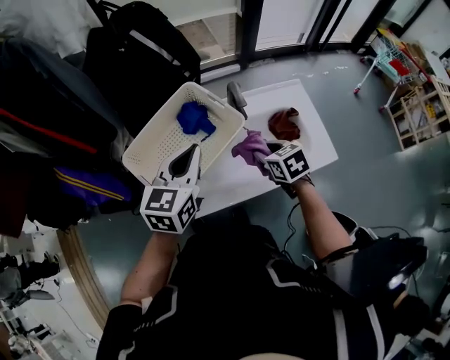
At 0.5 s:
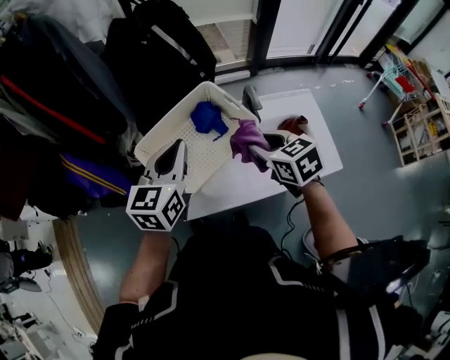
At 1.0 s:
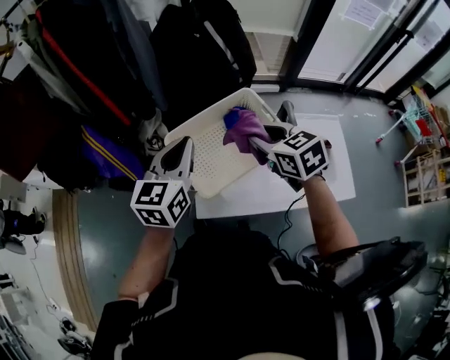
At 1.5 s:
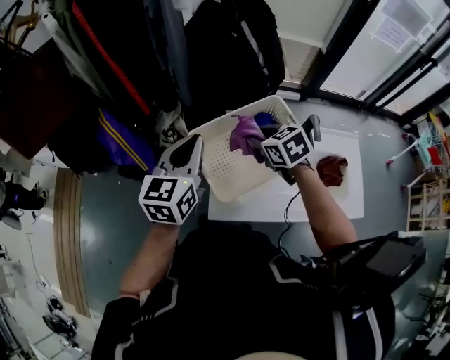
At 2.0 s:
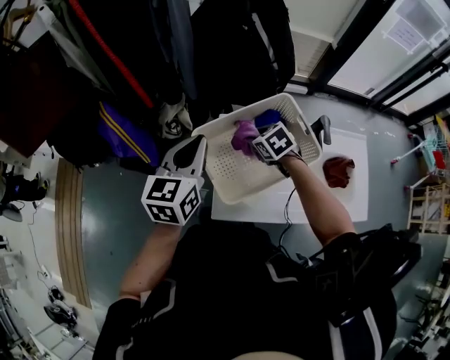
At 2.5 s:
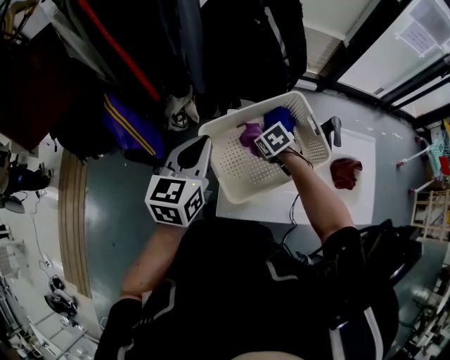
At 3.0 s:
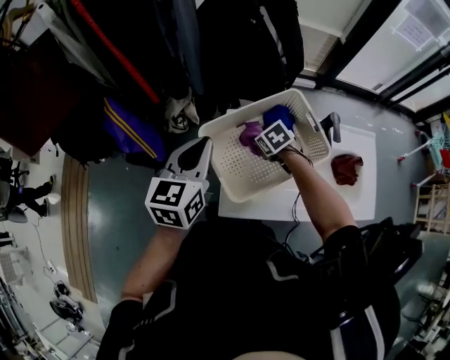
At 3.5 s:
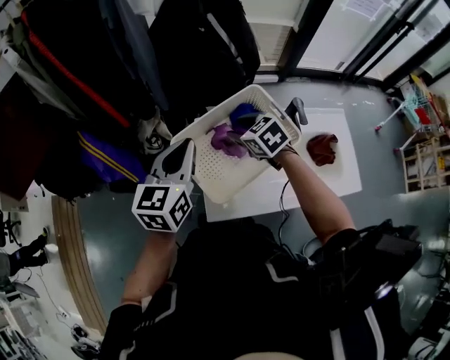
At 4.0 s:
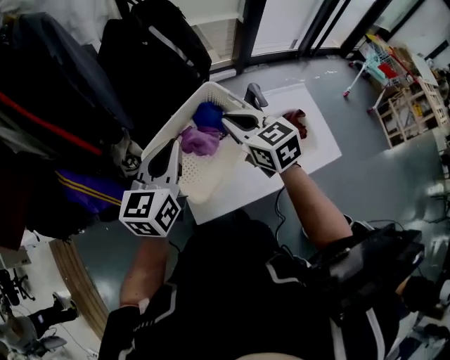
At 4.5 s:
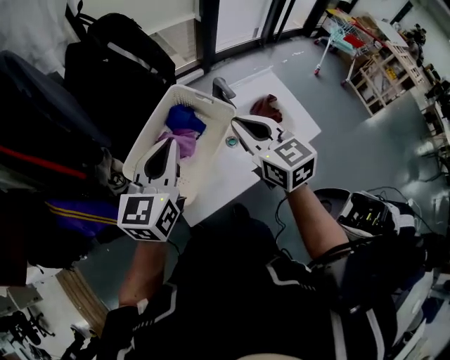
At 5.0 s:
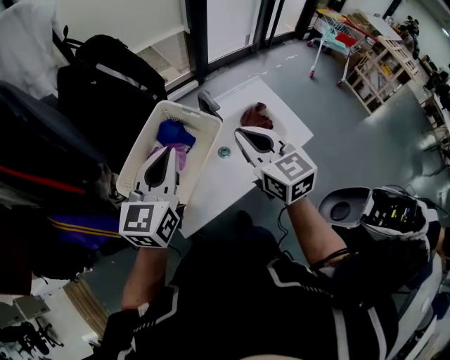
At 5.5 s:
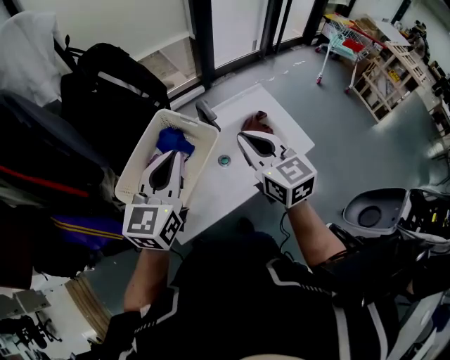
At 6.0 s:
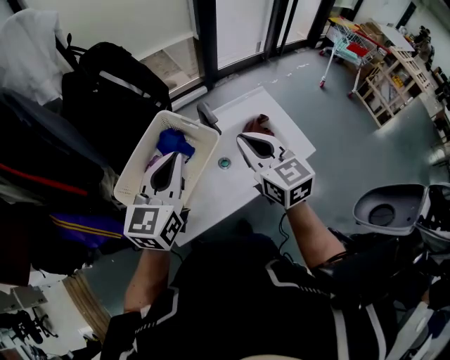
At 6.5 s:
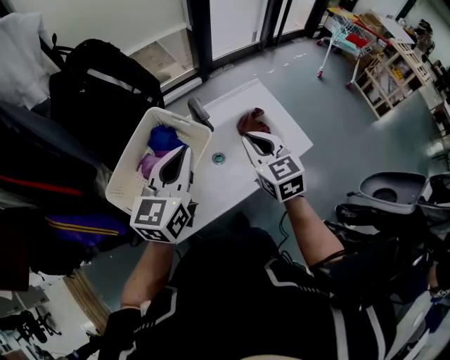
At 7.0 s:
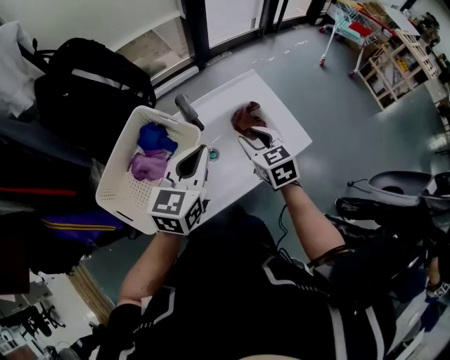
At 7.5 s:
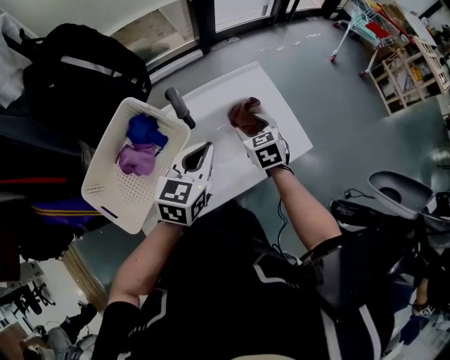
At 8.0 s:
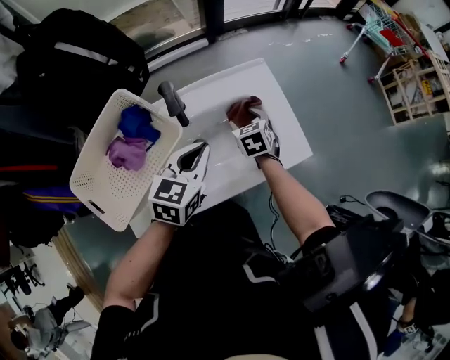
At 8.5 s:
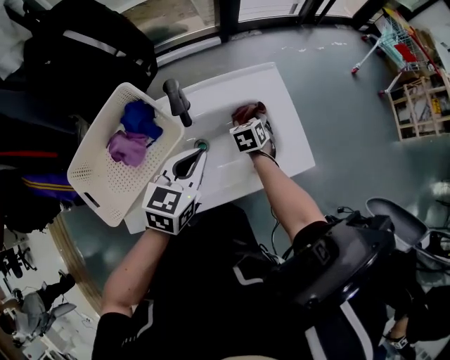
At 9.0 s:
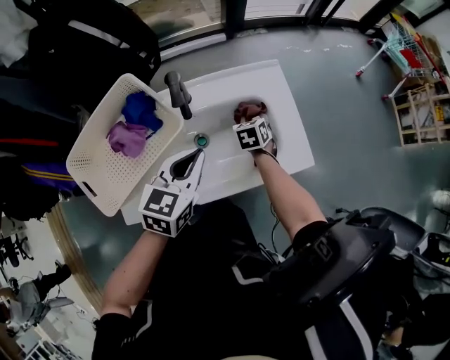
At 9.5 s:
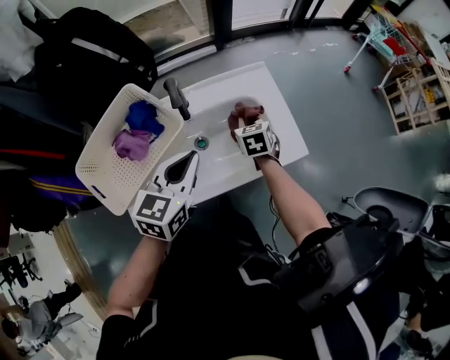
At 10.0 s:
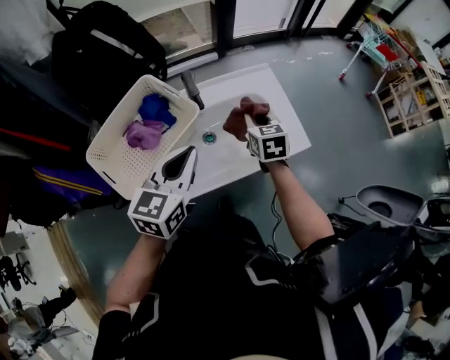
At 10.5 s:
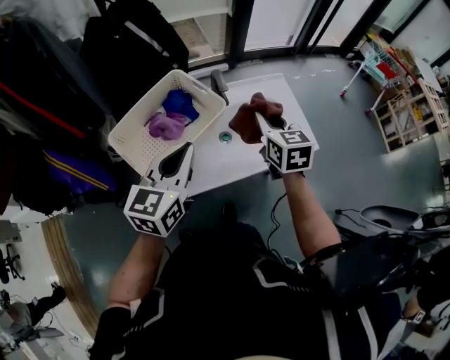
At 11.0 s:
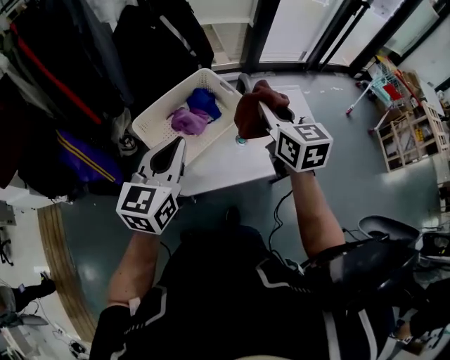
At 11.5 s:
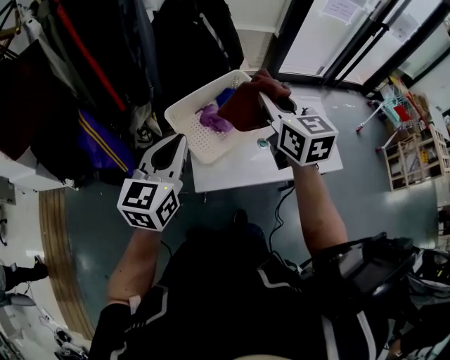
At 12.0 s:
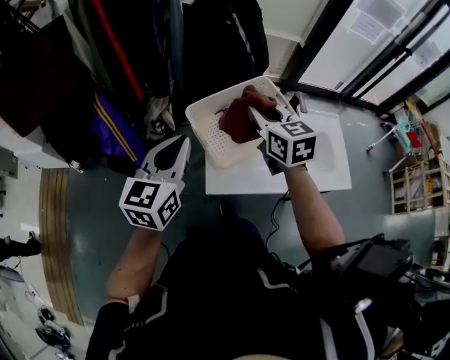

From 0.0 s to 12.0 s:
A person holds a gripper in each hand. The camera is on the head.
From 0.0 s to 2.0 s: The left gripper moves to the left, approximately 20 cm, and turns by some 20 degrees. Meanwhile the right gripper heads to the left and forward, covering roughly 30 cm, and swivels approximately 30 degrees.
From 2.0 s to 4.0 s: The left gripper heads to the right, covering approximately 5 cm, and changes its angle by roughly 20 degrees. Meanwhile the right gripper heads upward, covering roughly 20 cm, and tilts its fingers about 30 degrees upward.
From 4.0 s to 6.0 s: Both grippers travel together to the right, some 15 cm. The right gripper rotates roughly 20 degrees.
From 6.0 s to 8.0 s: The left gripper goes approximately 25 cm downward, to the right and forward, and turns by roughly 20 degrees, while the right gripper travels downward and forward by about 35 cm, angles its fingers downward, by approximately 40 degrees, and opens its fingers.
From 8.0 s to 10.0 s: The right gripper shifts approximately 15 cm upward and backward, and closes up. Meanwhile the left gripper shifts approximately 15 cm backward, upward and to the left.
From 10.0 s to 12.0 s: The left gripper shifts by approximately 35 cm, and changes its angle by roughly 30 degrees, while the right gripper ends up about 40 cm from where it was, and swivels about 30 degrees.

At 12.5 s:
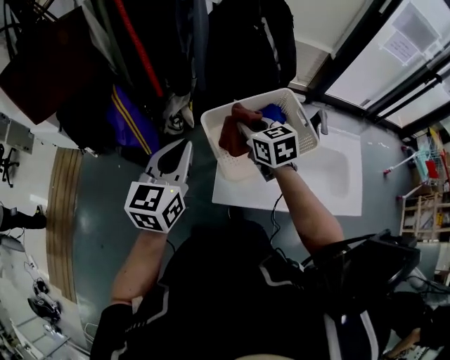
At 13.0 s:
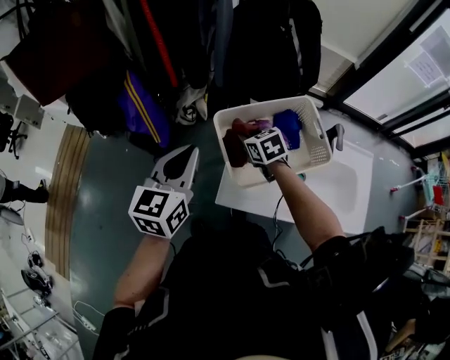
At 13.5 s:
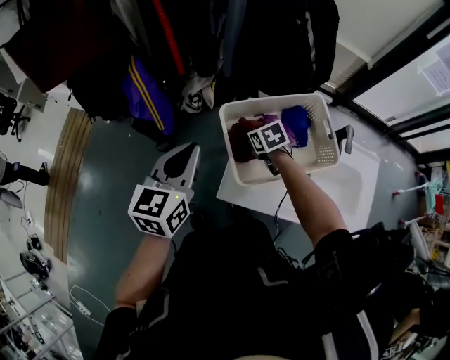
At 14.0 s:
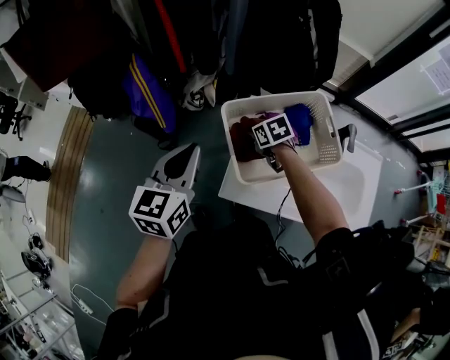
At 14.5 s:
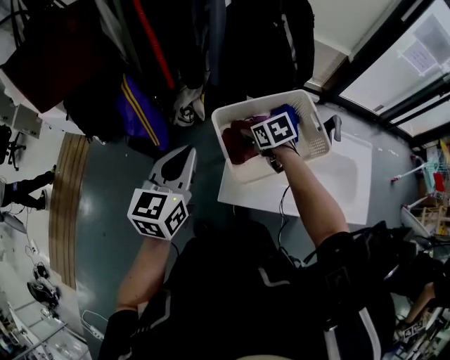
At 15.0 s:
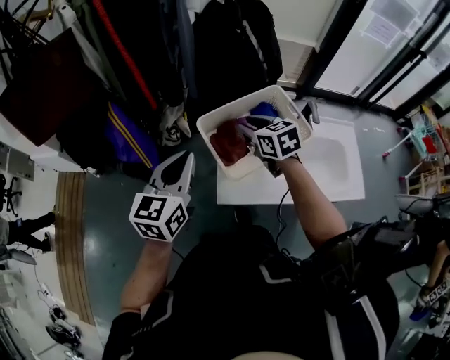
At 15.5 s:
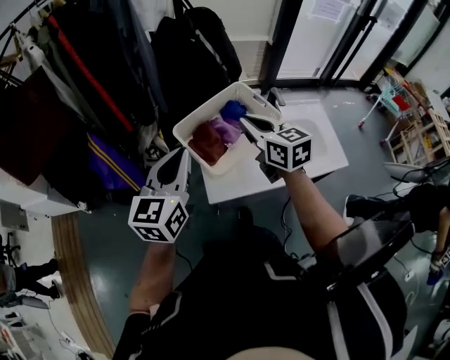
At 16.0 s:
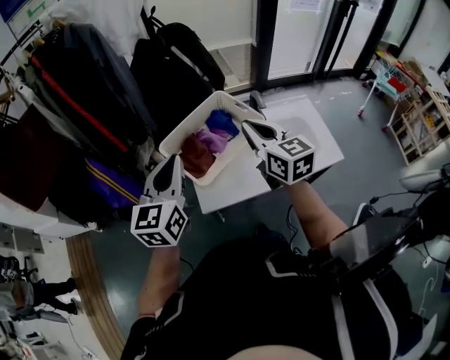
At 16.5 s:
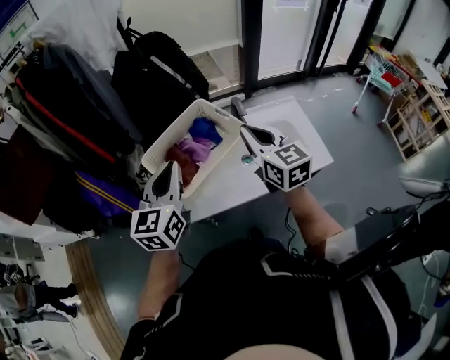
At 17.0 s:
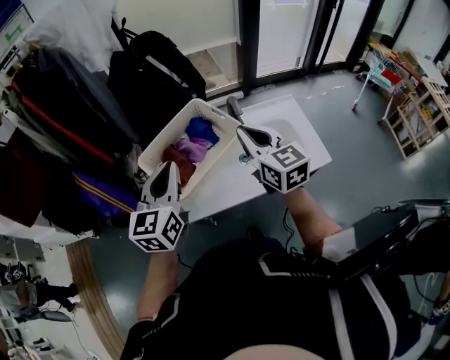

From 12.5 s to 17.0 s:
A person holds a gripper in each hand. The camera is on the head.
From 12.5 s to 14.5 s: The right gripper goes roughly 10 cm downward, turns by about 20 degrees, and opens.
From 14.5 s to 17.0 s: The left gripper changes place by approximately 20 cm. Meanwhile the right gripper moves about 35 cm, angles its fingers upward, by approximately 40 degrees, and closes.

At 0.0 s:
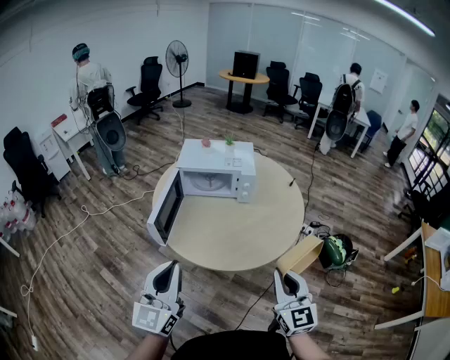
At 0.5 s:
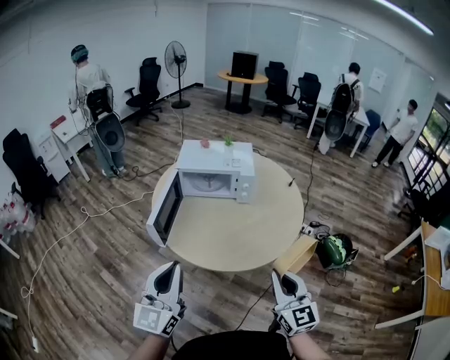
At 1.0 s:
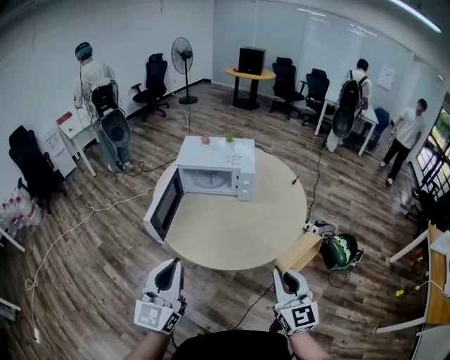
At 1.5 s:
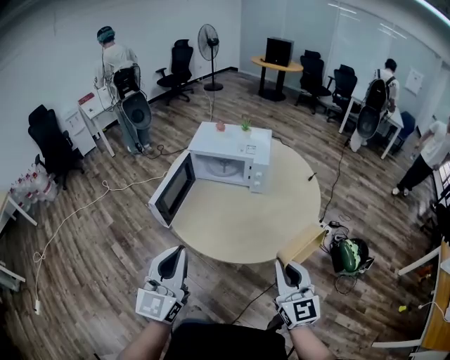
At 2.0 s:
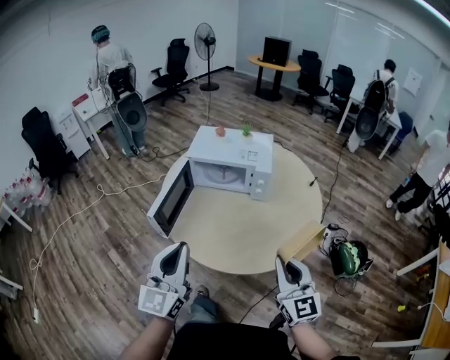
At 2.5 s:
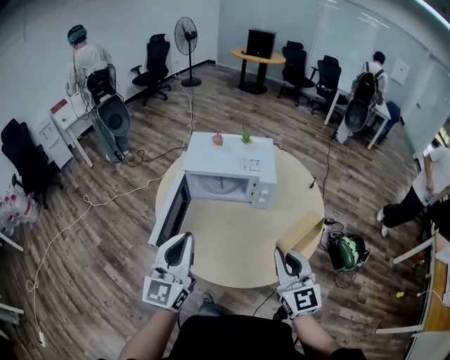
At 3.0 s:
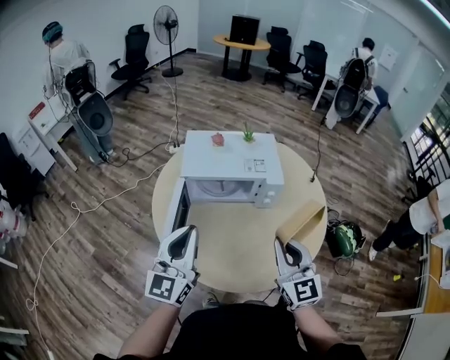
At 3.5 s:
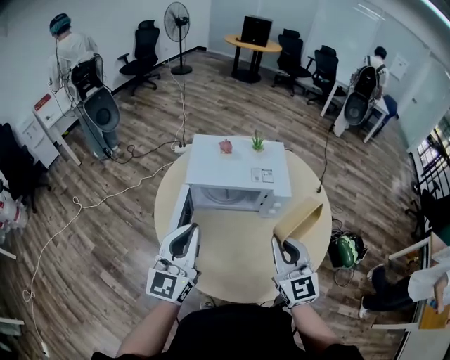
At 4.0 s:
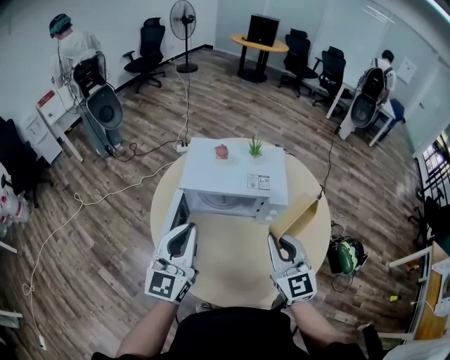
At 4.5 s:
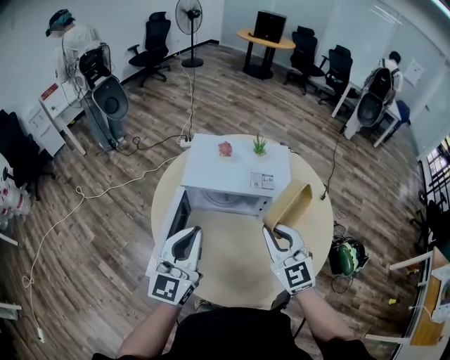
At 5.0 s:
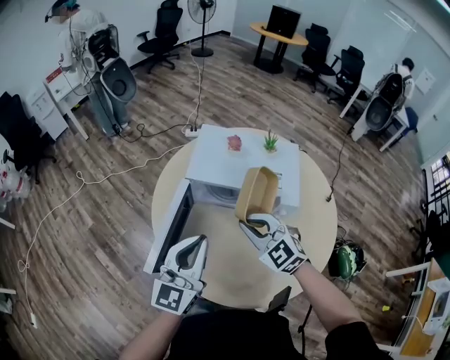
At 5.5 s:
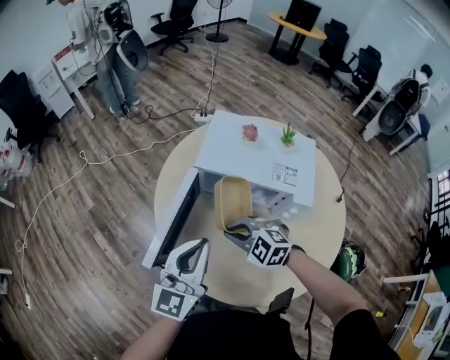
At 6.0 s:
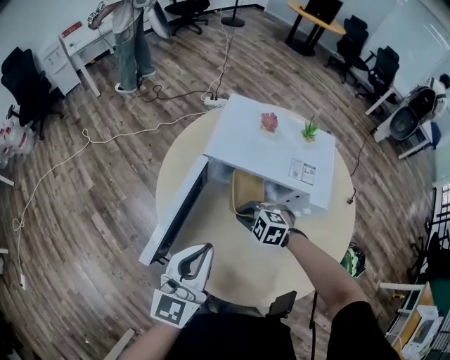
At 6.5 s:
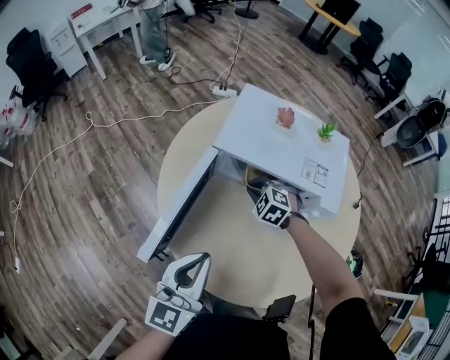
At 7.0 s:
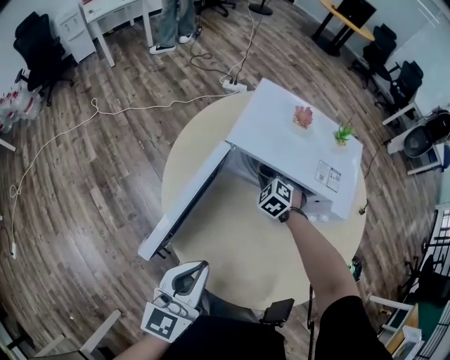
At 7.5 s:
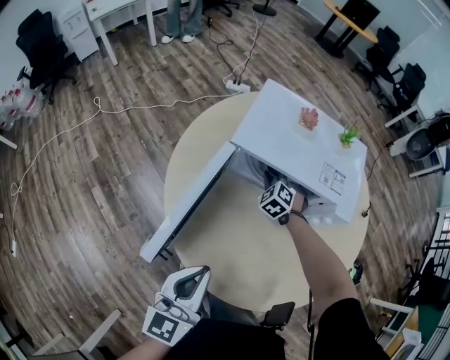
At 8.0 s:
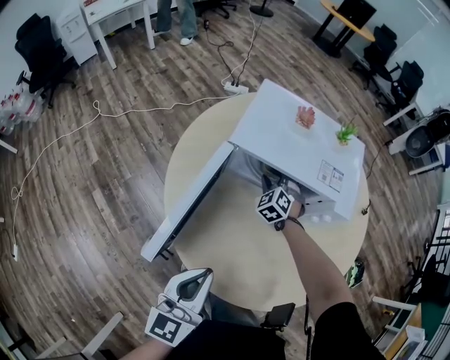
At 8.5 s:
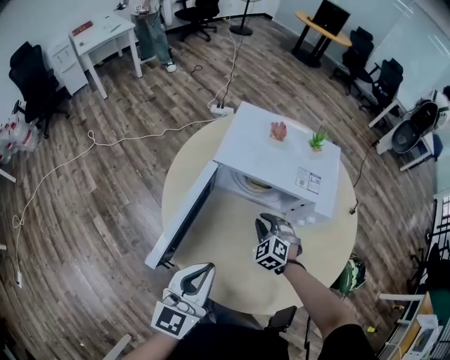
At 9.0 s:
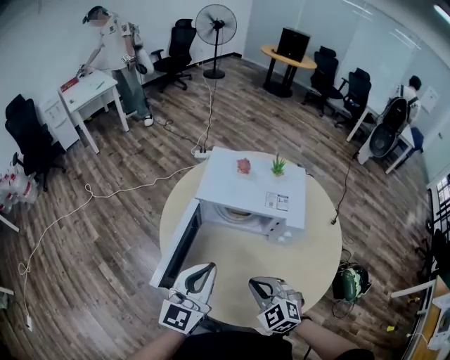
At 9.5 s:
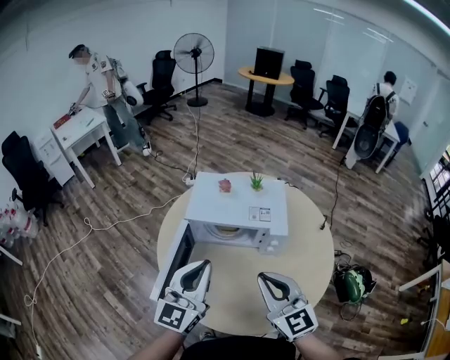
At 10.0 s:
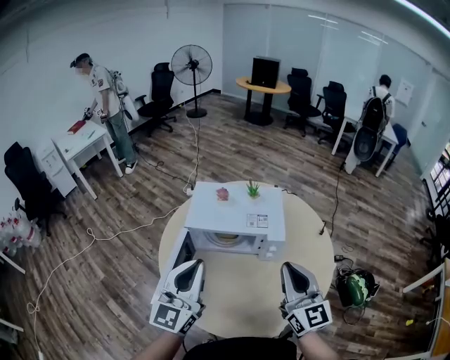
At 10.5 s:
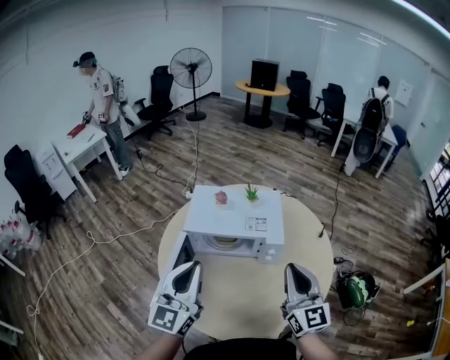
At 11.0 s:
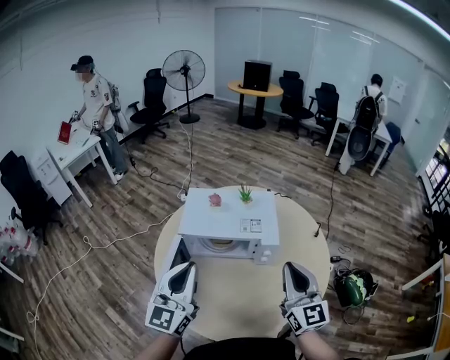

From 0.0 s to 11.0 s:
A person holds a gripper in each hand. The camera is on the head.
From 0.0 s to 2.0 s: The right gripper goes about 10 cm forward; the left gripper heads forward and to the right, covering some 10 cm.
From 2.0 s to 3.5 s: The right gripper heads forward and to the left, covering about 30 cm. The left gripper heads forward, covering about 25 cm.
From 3.5 s to 5.5 s: The right gripper goes some 20 cm downward, and angles its fingers downward, by about 40 degrees, while the left gripper goes about 5 cm downward.
From 5.5 s to 7.5 s: The left gripper shifts about 10 cm downward. The right gripper shifts by roughly 30 cm, and rotates about 40 degrees.
From 7.5 s to 9.0 s: The right gripper moves backward and upward, roughly 35 cm, changes its angle by about 20 degrees, and opens, then closes once more; the left gripper moves upward, approximately 10 cm.
From 9.0 s to 11.0 s: The left gripper travels upward by about 10 cm, while the right gripper travels upward and to the right by approximately 25 cm, and tilts its fingers some 50 degrees upward.
